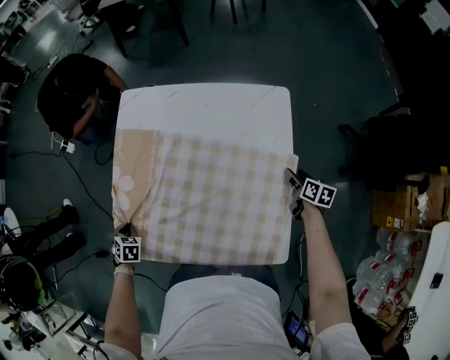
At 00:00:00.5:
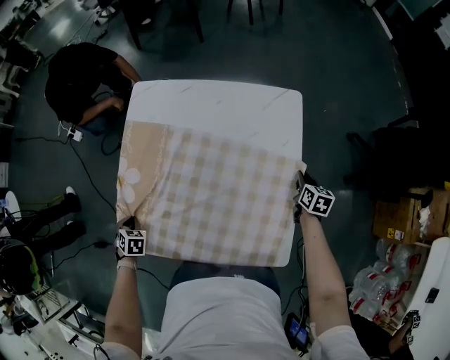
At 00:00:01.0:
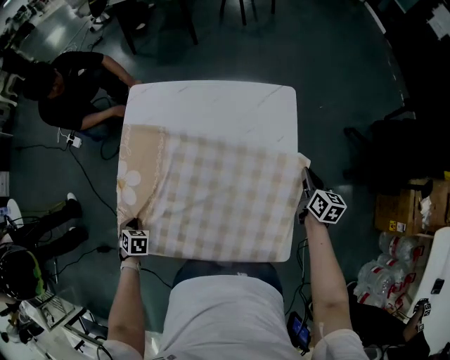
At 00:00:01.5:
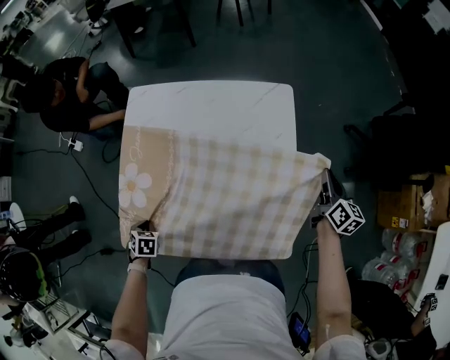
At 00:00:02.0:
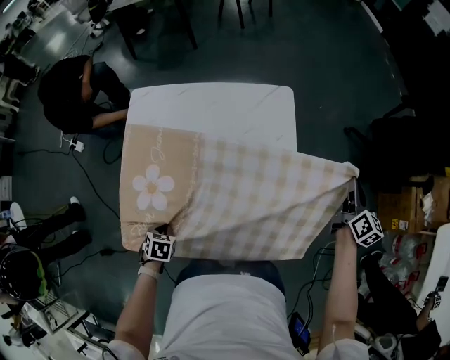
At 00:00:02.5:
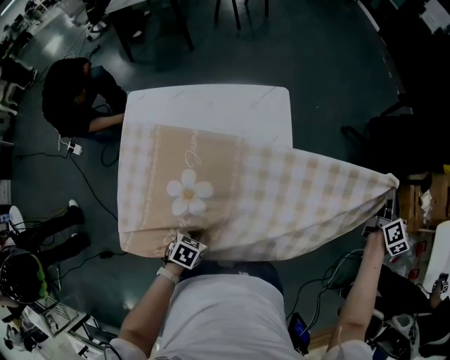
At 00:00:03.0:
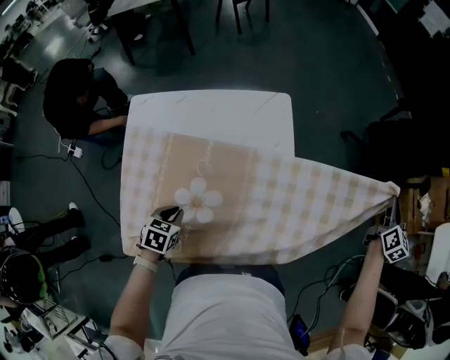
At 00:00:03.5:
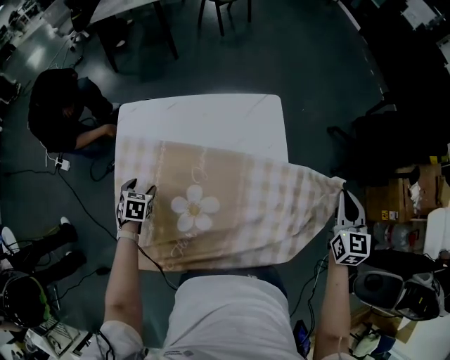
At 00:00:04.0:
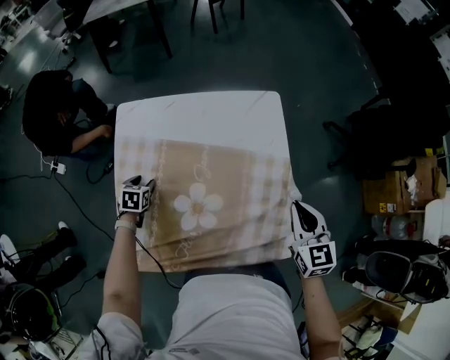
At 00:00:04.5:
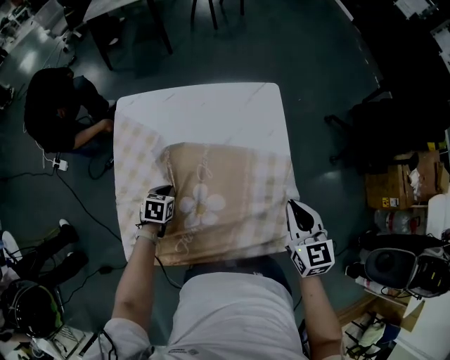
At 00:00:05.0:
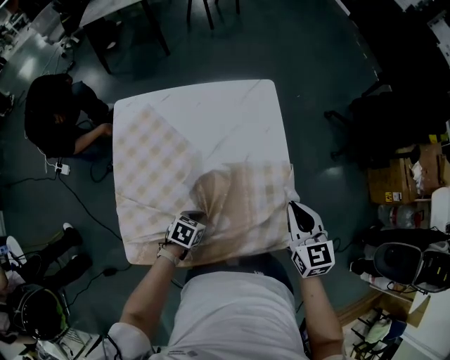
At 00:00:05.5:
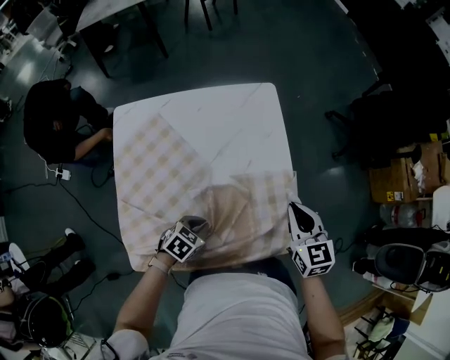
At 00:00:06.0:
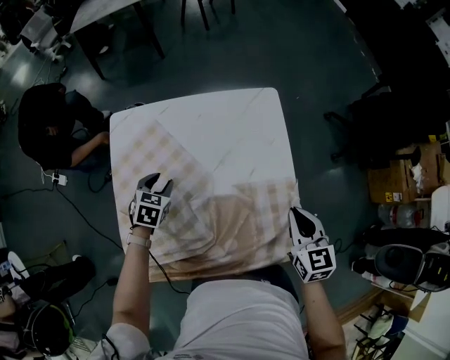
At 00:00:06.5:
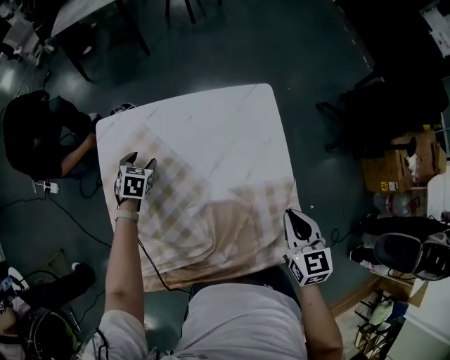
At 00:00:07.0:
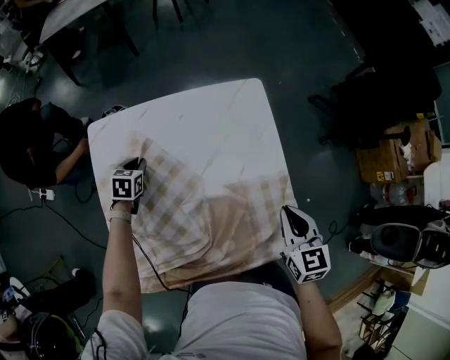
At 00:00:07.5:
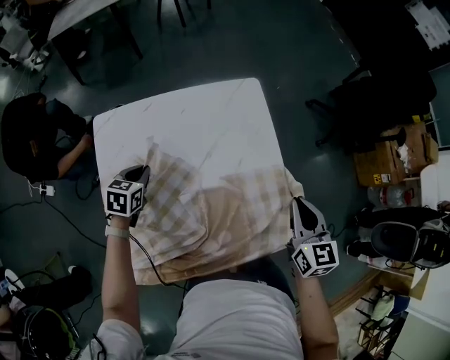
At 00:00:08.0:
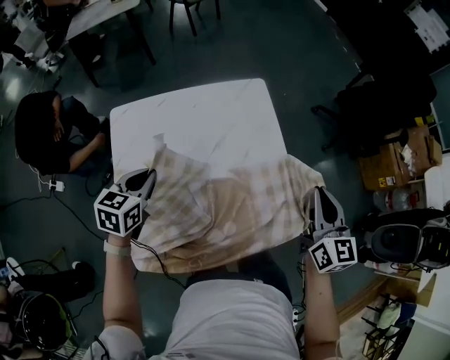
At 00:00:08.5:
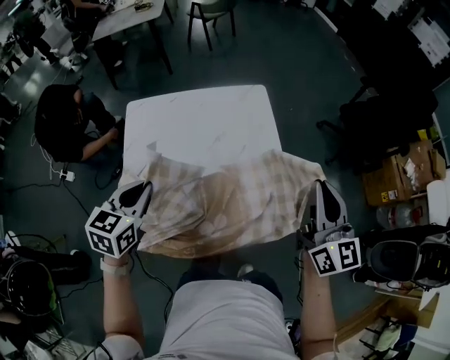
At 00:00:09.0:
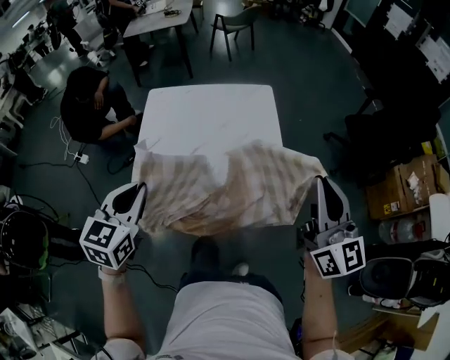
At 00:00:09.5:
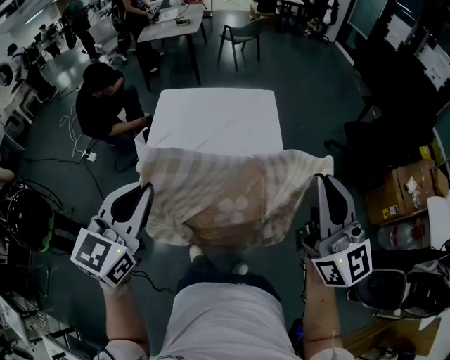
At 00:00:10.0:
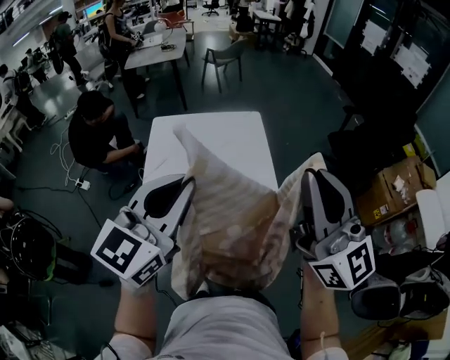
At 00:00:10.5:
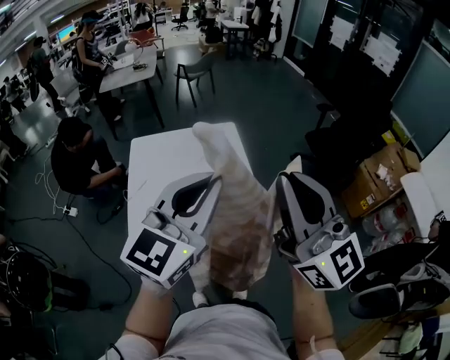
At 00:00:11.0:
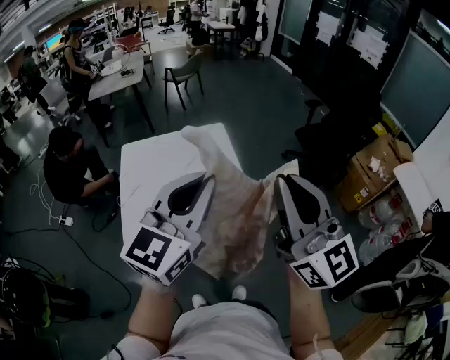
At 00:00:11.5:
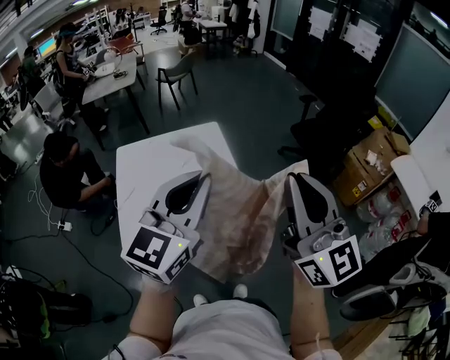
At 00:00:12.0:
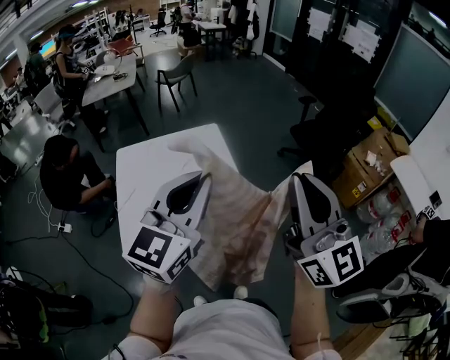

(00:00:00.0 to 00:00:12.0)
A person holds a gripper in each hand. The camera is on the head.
00:00:00.0 - 00:00:02.0: The left gripper ends up roughly 15 cm from where it was, while the right gripper moves upward, roughly 20 cm, changes its angle by about 30 degrees, and closes its fingers.
00:00:02.0 - 00:00:04.0: The right gripper moves about 25 cm, and changes its angle by some 40 degrees. Meanwhile the left gripper moves some 25 cm, and opens.
00:00:04.0 - 00:00:06.0: The left gripper closes and opens again.
00:00:06.0 - 00:00:08.0: The right gripper heads upward and to the right, covering about 15 cm, and swivels approximately 20 degrees; the left gripper heads upward, covering roughly 15 cm, rotates some 20 degrees, and closes up.
00:00:08.0 - 00:00:10.0: Both grippers move backward and upward, about 50 cm. The left gripper points its fingers some 40 degrees further upward, while the right gripper tilts its fingers approximately 40 degrees upward.
00:00:10.0 - 00:00:12.0: The left gripper heads to the right and forward, covering some 10 cm. The right gripper is displaced to the right by about 5 cm.

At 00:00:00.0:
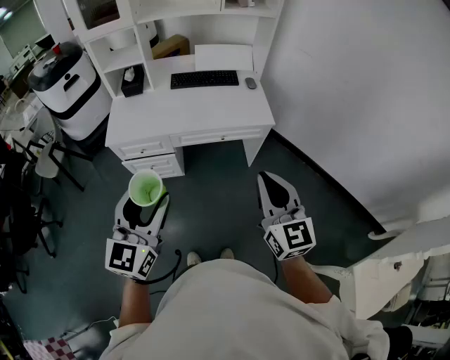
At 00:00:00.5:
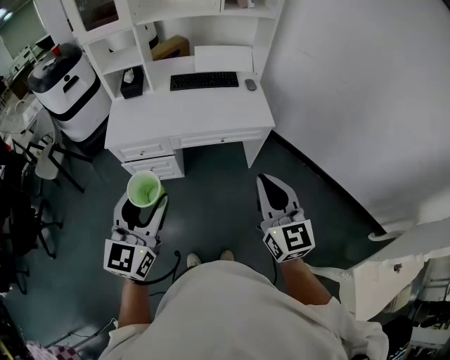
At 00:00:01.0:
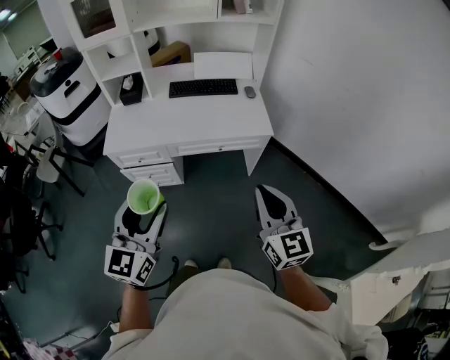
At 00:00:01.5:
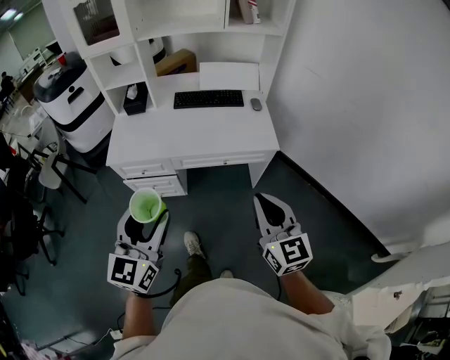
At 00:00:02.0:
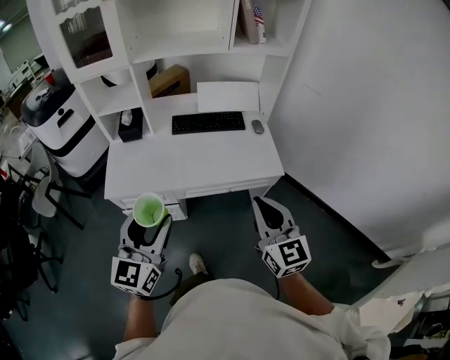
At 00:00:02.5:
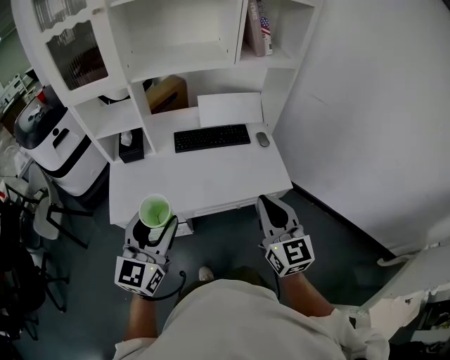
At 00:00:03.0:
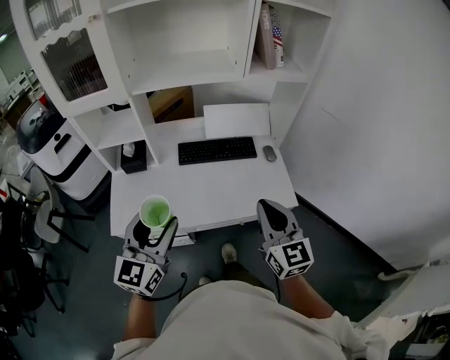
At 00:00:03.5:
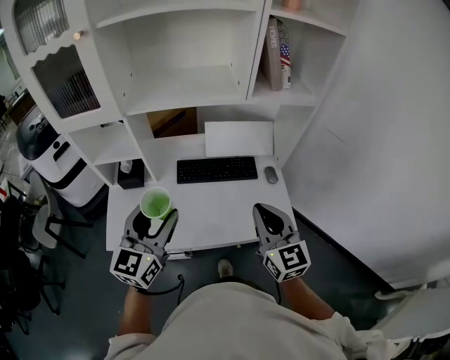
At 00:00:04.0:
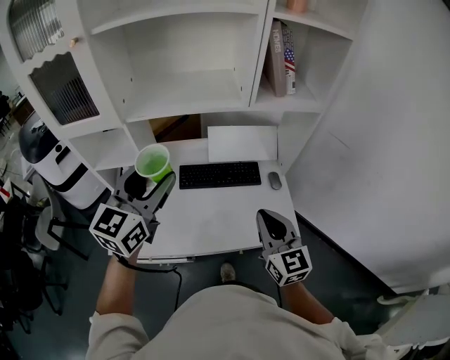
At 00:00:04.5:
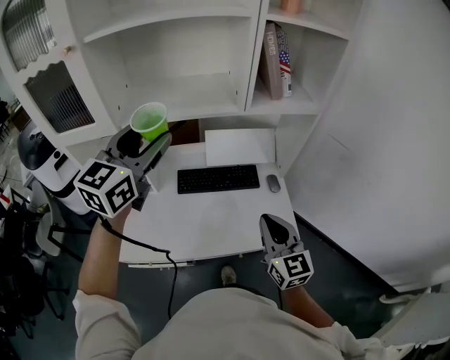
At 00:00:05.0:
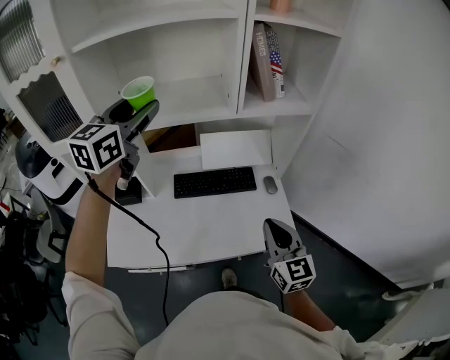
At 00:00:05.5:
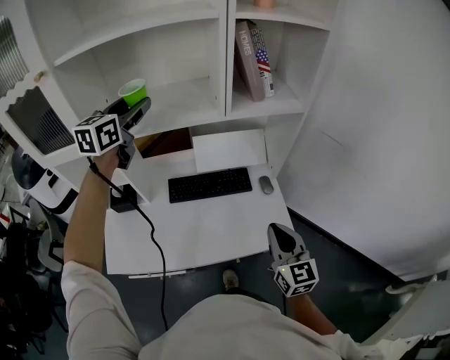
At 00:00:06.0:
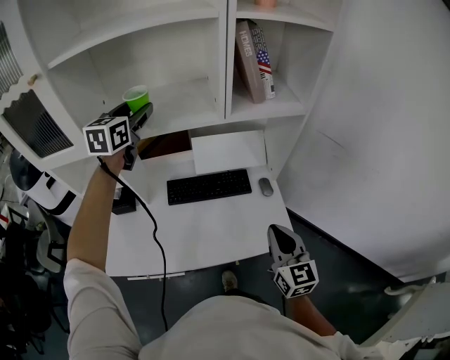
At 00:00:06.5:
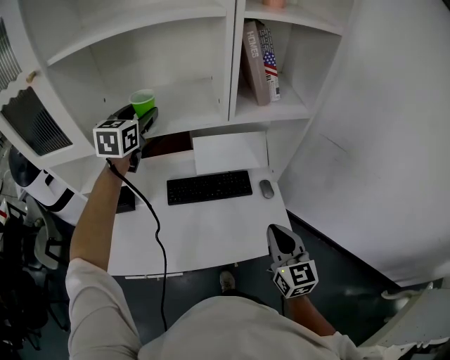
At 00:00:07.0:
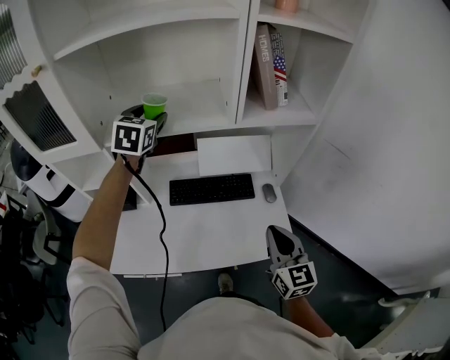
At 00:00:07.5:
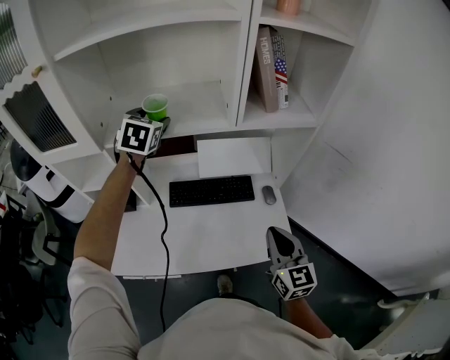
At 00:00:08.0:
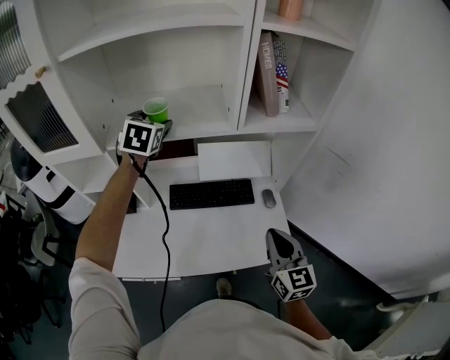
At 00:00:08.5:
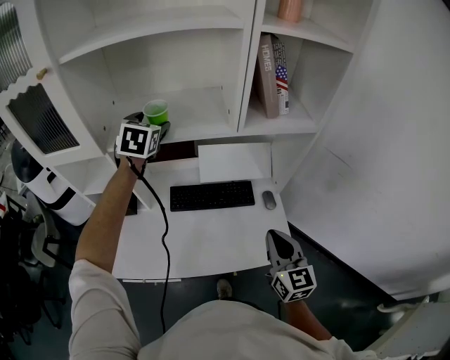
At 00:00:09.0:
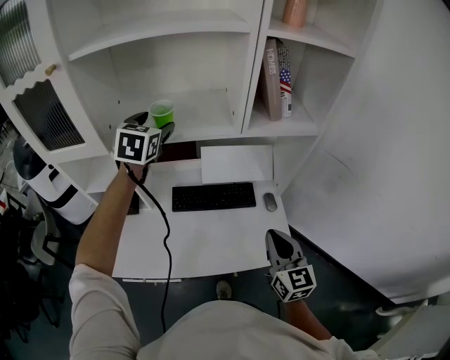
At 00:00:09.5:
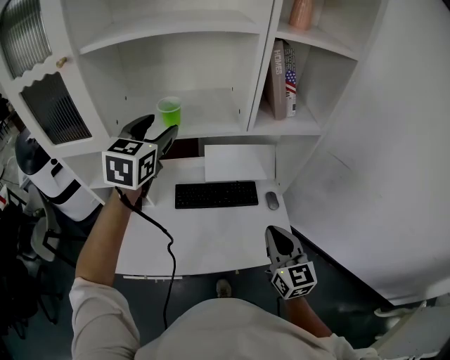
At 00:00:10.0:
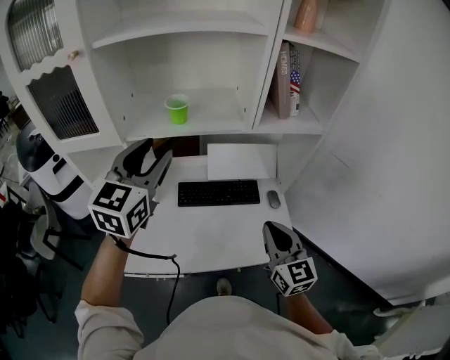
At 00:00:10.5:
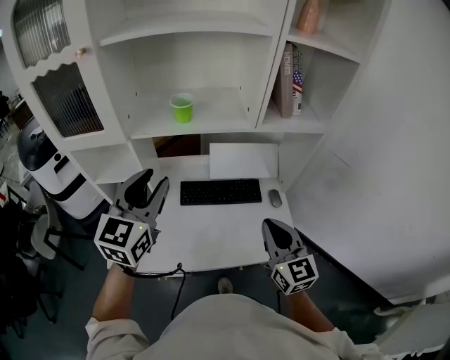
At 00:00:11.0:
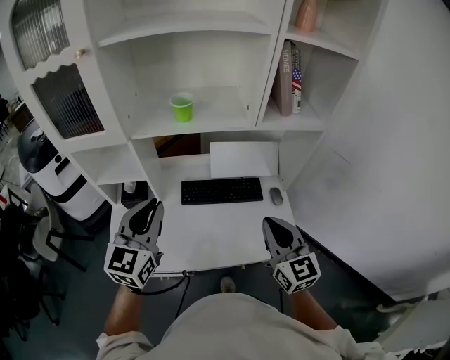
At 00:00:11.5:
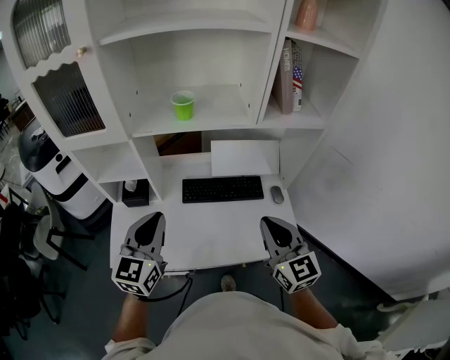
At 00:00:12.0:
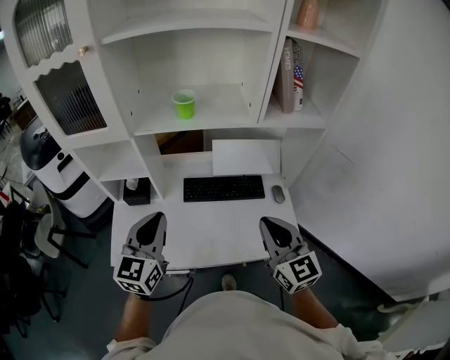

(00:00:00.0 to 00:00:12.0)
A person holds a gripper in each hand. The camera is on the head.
00:00:00.0 - 00:00:02.0: The two grippers go some 20 cm forward.
00:00:02.0 - 00:00:04.0: The two grippers go roughly 35 cm forward.
00:00:04.0 - 00:00:06.0: The right gripper goes about 10 cm to the right; the left gripper travels forward by approximately 25 cm.
00:00:06.0 - 00:00:08.0: The left gripper shifts some 5 cm downward, and turns by some 20 degrees.
00:00:08.0 - 00:00:10.0: The left gripper moves backward and upward, roughly 20 cm, changes its angle by some 30 degrees, and closes its fingers. Meanwhile the right gripper goes about 5 cm to the left.
00:00:10.0 - 00:00:12.0: The left gripper travels downward and backward by some 20 cm, and closes. Meanwhile the right gripper changes place by approximately 5 cm.

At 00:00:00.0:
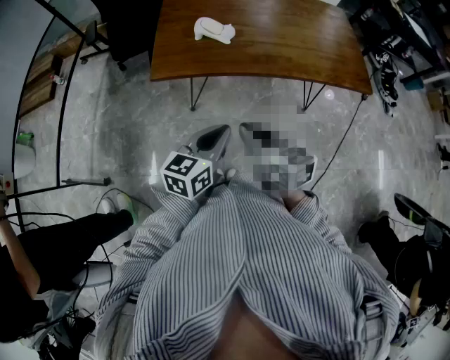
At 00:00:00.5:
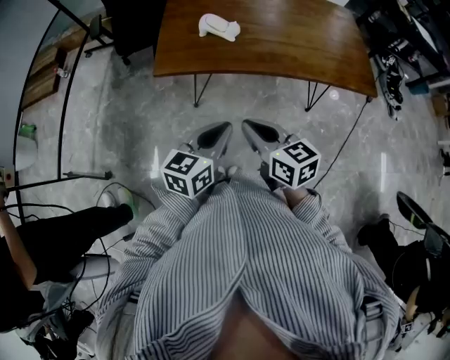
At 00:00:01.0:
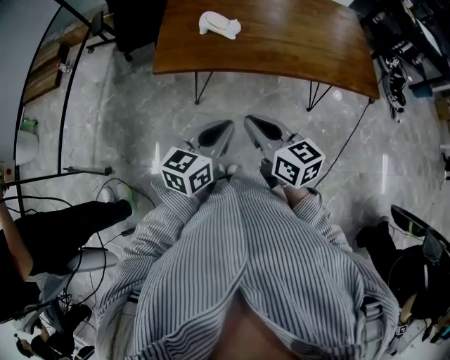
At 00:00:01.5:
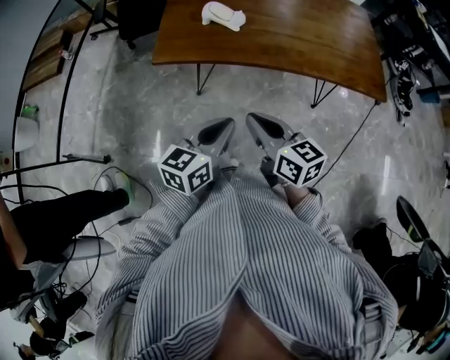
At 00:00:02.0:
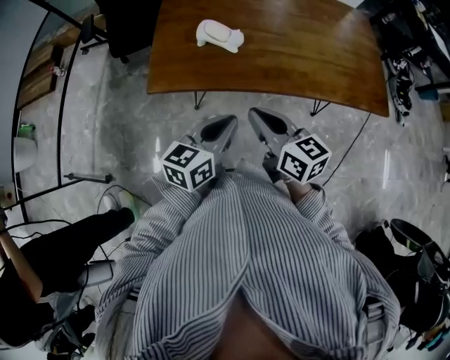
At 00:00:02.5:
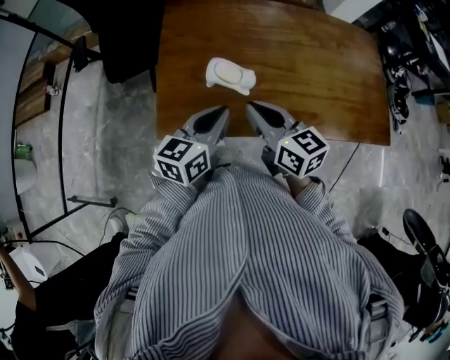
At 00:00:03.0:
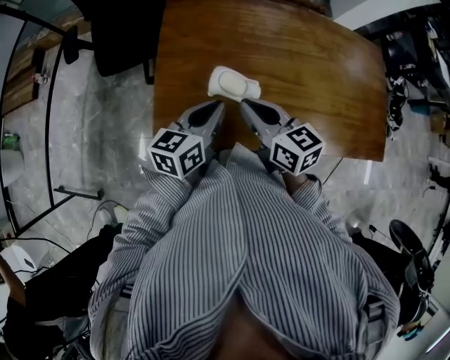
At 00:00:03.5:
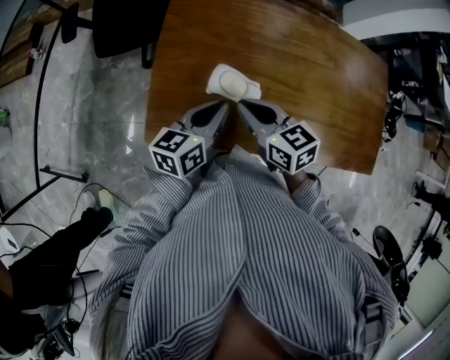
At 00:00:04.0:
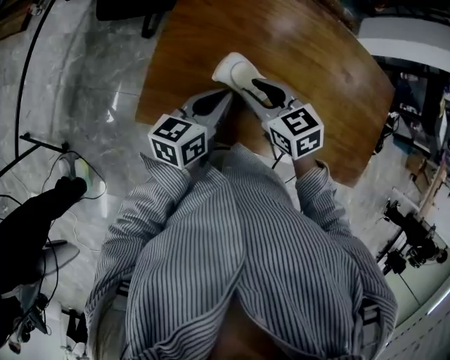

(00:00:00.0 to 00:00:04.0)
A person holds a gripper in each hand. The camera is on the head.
00:00:00.0 - 00:00:02.0: Both grippers move forward, roughly 15 cm.
00:00:02.0 - 00:00:04.0: The two grippers go roughly 30 cm forward. The left gripper rotates approximately 20 degrees, while the right gripper tips its fingers downward by some 30 degrees, and opens up.
